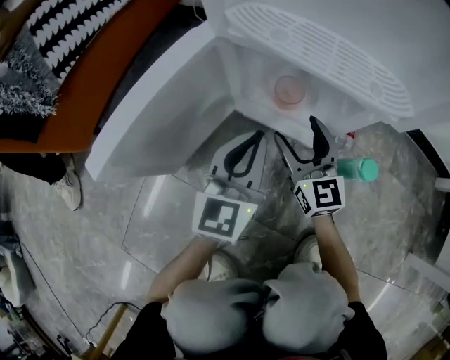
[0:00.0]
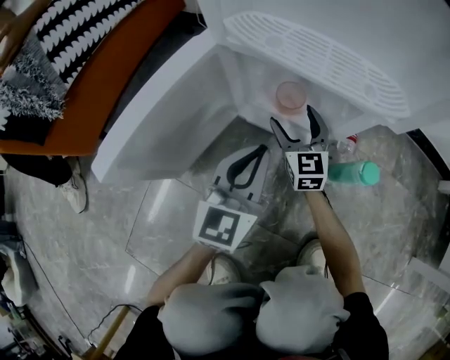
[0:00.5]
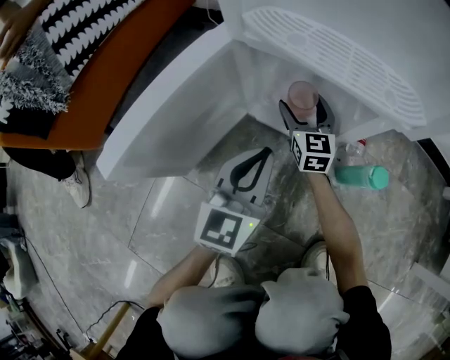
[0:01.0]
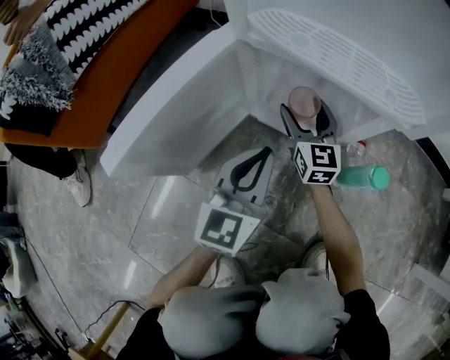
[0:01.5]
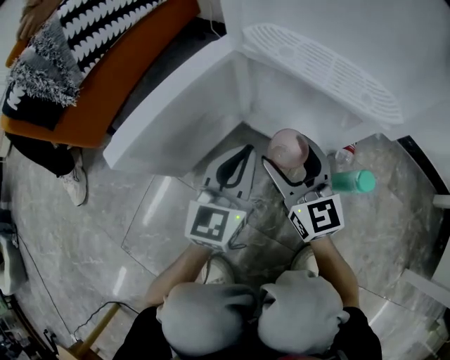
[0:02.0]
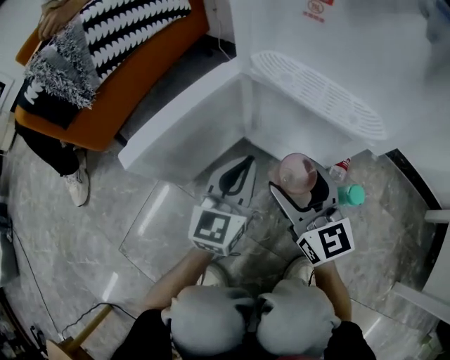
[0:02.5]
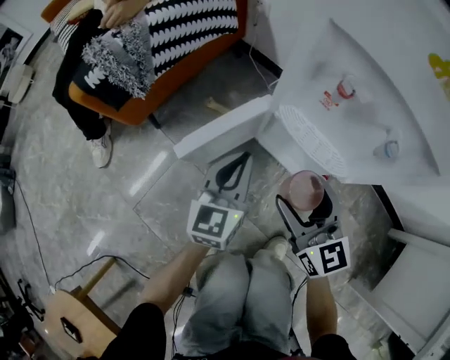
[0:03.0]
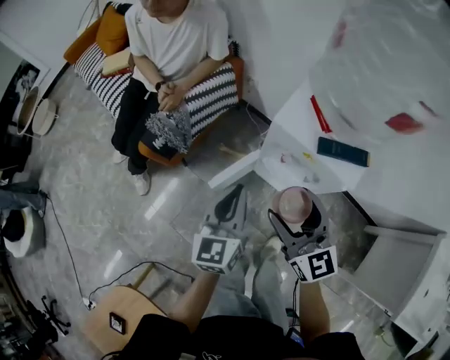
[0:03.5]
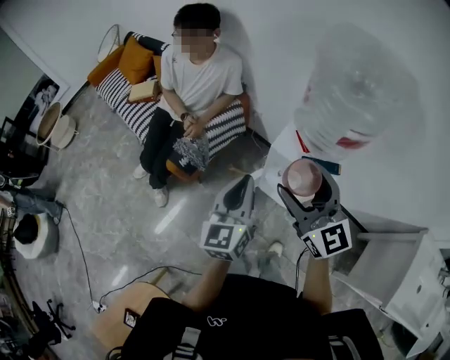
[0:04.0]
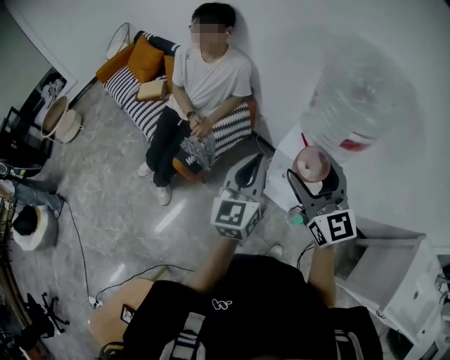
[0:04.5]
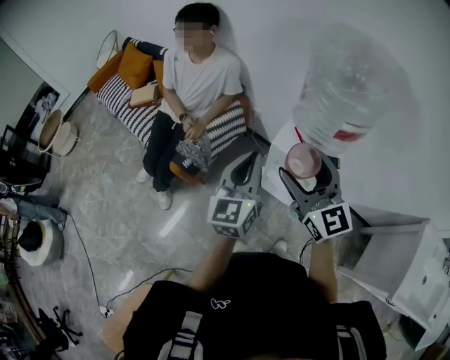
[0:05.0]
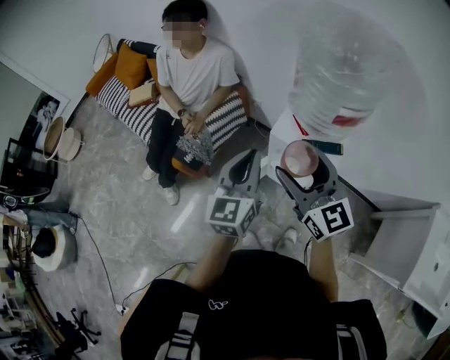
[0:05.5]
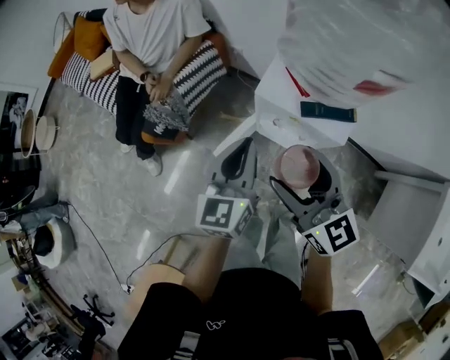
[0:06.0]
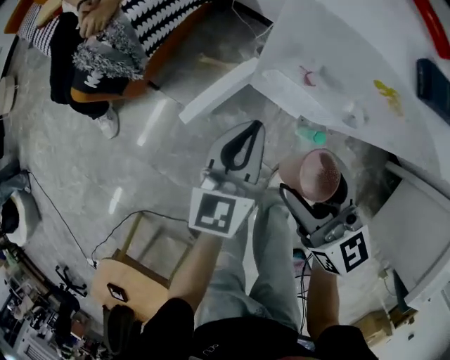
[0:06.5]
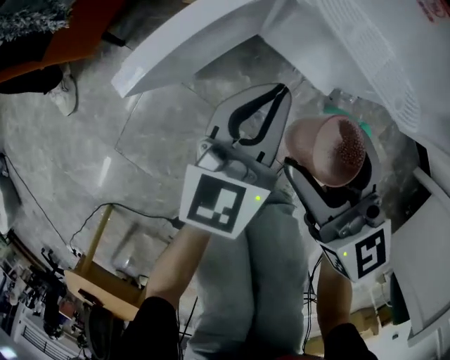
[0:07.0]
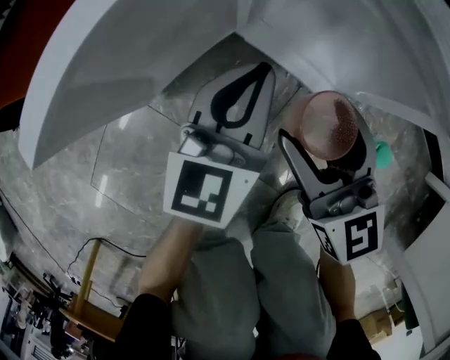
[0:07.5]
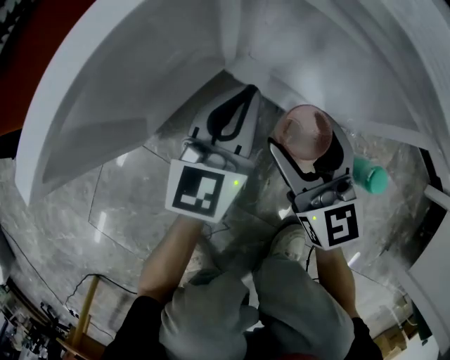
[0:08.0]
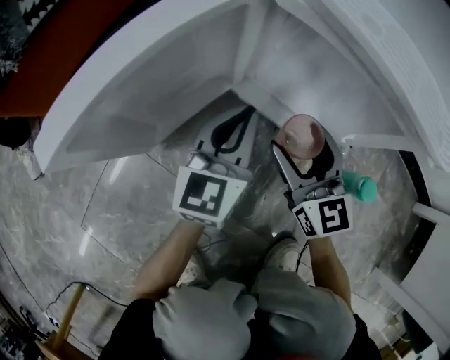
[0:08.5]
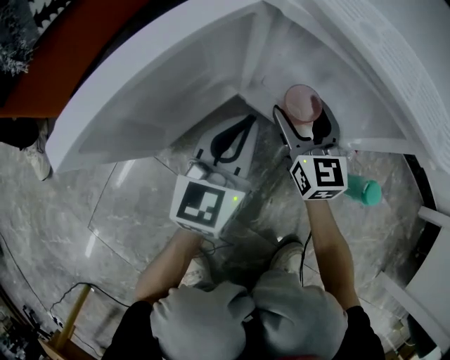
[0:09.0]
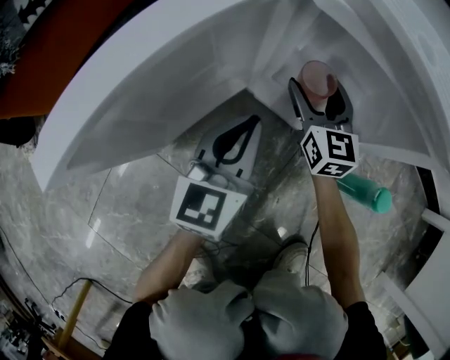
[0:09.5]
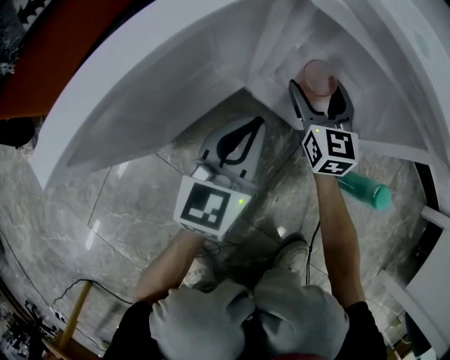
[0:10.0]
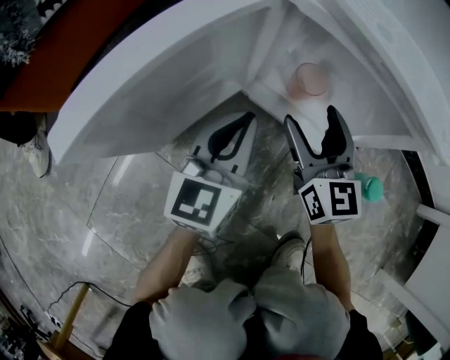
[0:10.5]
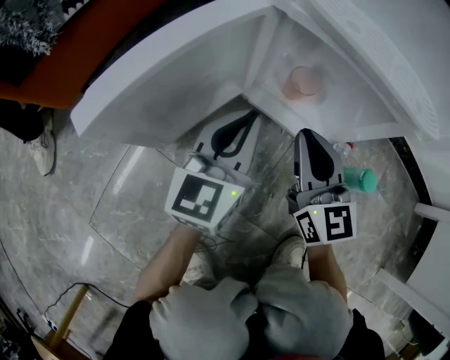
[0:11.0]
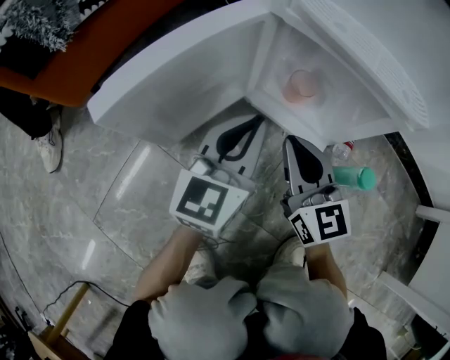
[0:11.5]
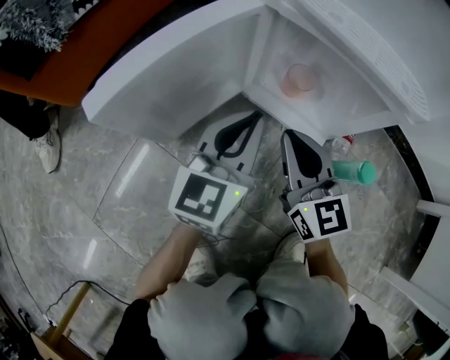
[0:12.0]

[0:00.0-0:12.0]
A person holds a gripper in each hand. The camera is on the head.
0:00.0 to 0:02.0: The right gripper moves approximately 10 cm forward and comes back.
0:02.0 to 0:04.0: The two grippers go approximately 80 cm upward.
0:04.0 to 0:06.0: The right gripper shifts about 15 cm downward; the left gripper goes approximately 15 cm downward, to the right and forward.
0:06.0 to 0:08.0: Both grippers travel together downward, some 70 cm.
0:08.0 to 0:10.0: The right gripper heads forward and downward, covering some 15 cm.
0:10.0 to 0:12.0: The left gripper is displaced upward by roughly 10 cm. The right gripper is displaced backward and upward by about 20 cm, and closes its fingers.

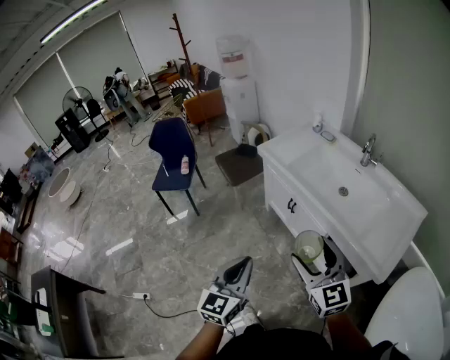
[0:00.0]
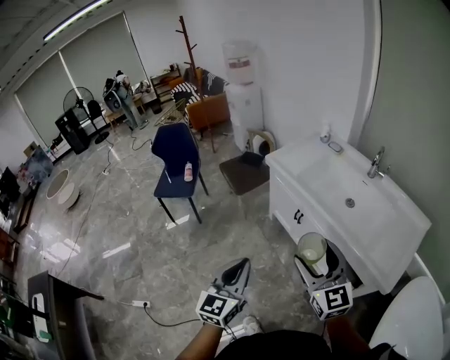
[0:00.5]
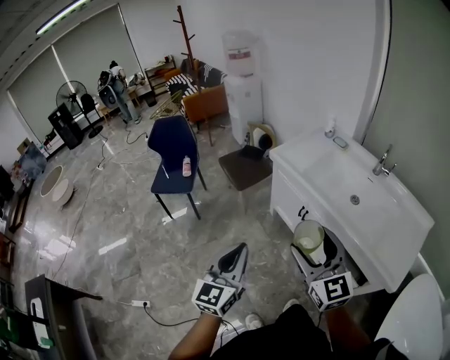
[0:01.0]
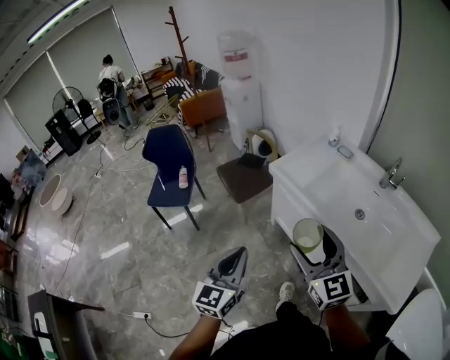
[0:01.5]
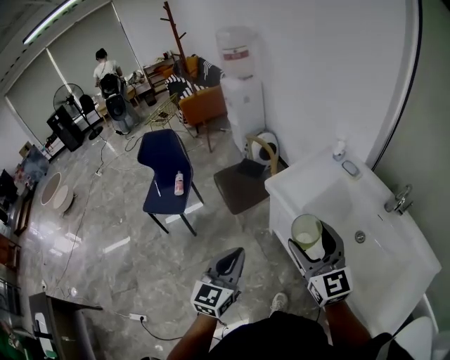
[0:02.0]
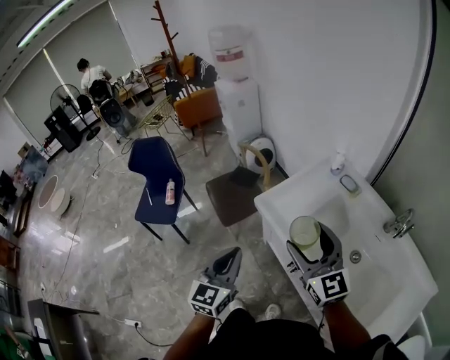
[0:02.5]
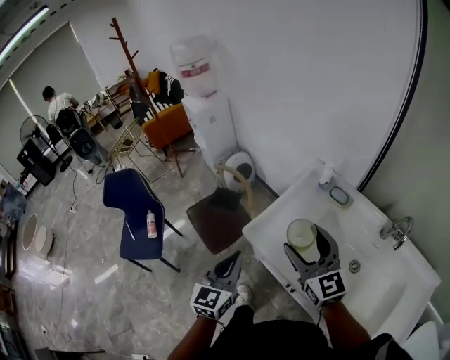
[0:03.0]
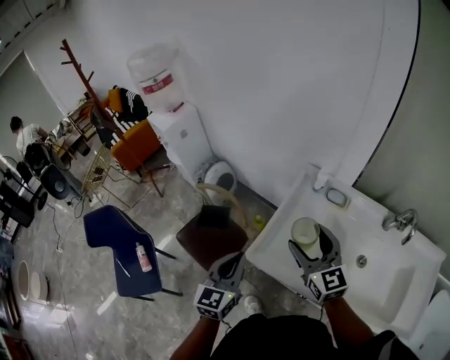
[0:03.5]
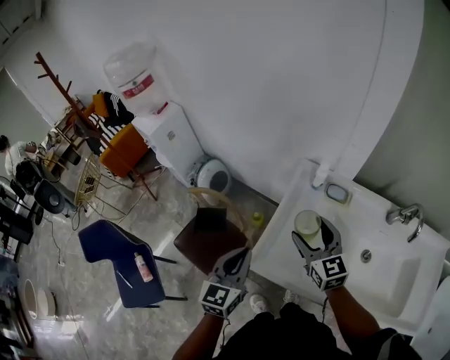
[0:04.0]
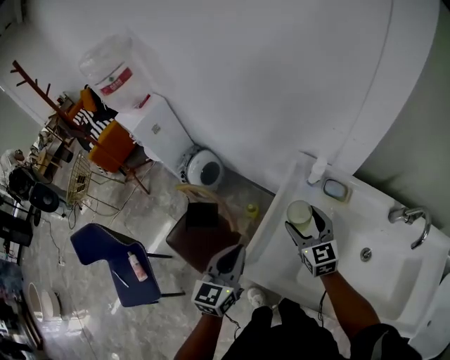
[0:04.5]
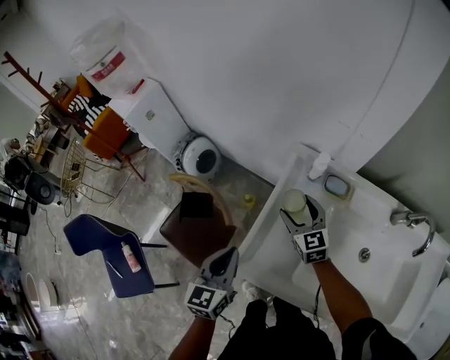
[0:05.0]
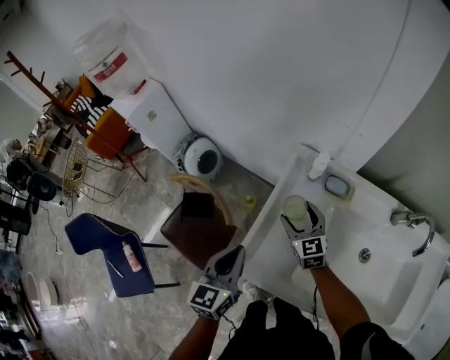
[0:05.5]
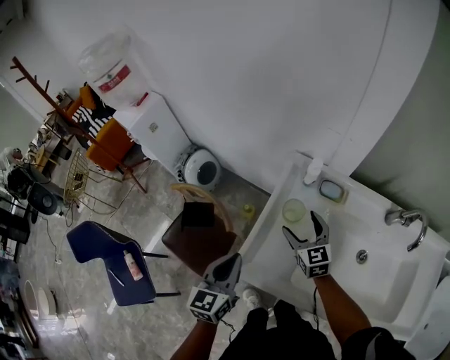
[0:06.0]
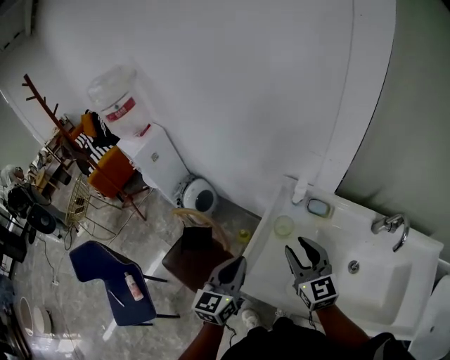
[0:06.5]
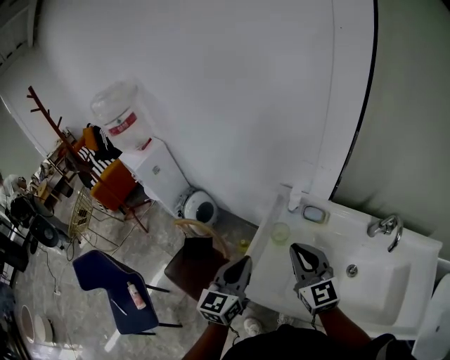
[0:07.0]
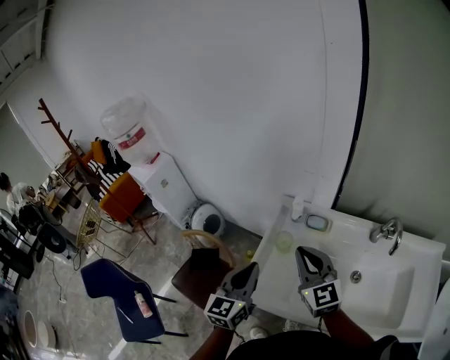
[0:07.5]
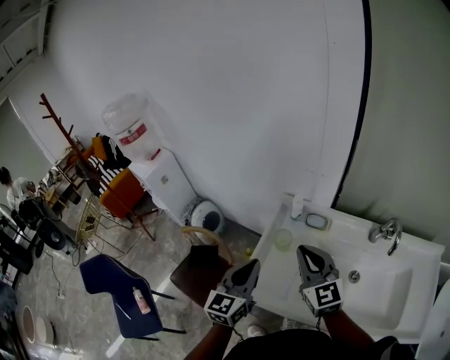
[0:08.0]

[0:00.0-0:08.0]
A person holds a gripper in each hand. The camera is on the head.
0:00.0 to 0:02.0: Both grippers travel together forward, some 35 cm.
0:02.0 to 0:04.0: The right gripper changes place by approximately 40 cm, and rotates about 30 degrees, while the left gripper moves about 40 cm, and turns by some 30 degrees.
0:04.0 to 0:06.0: The right gripper goes approximately 15 cm downward and forward; the left gripper goes some 5 cm downward.
0:06.0 to 0:08.0: The right gripper travels upward and backward by approximately 25 cm, and closes. Meanwhile the left gripper moves upward and to the right, roughly 15 cm.

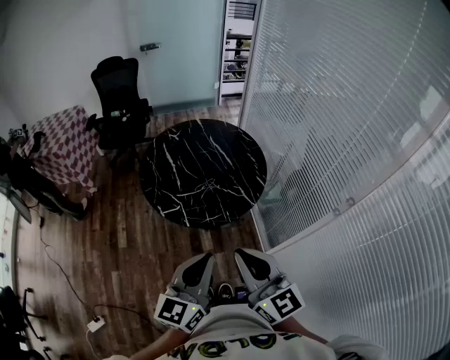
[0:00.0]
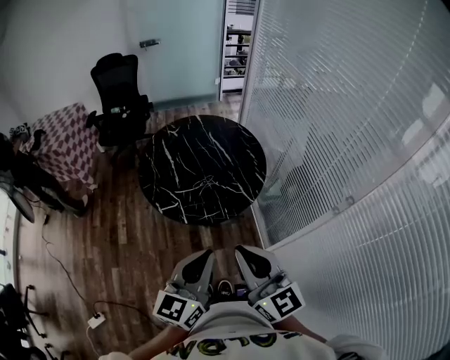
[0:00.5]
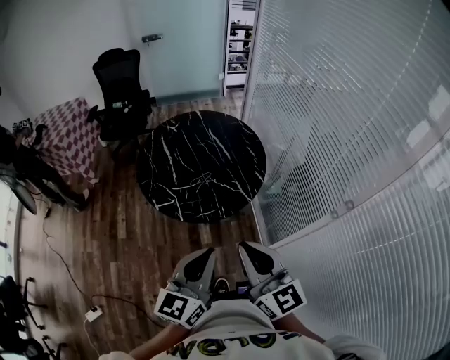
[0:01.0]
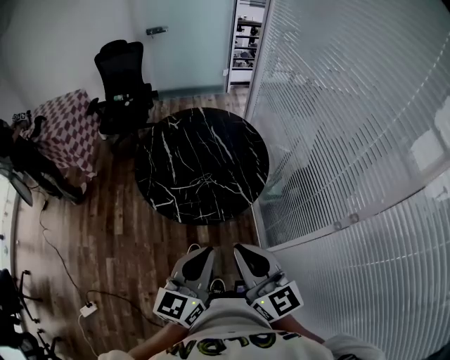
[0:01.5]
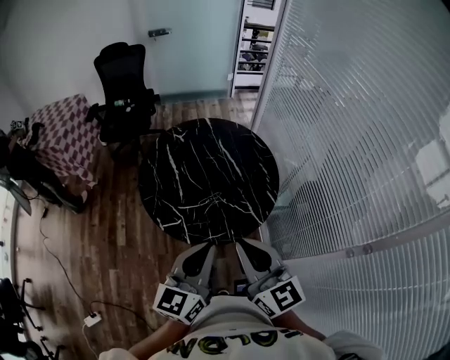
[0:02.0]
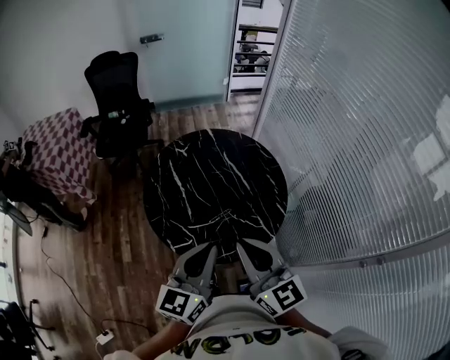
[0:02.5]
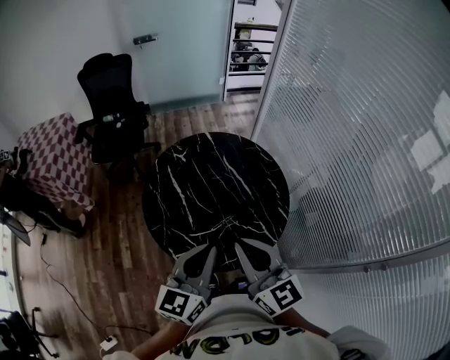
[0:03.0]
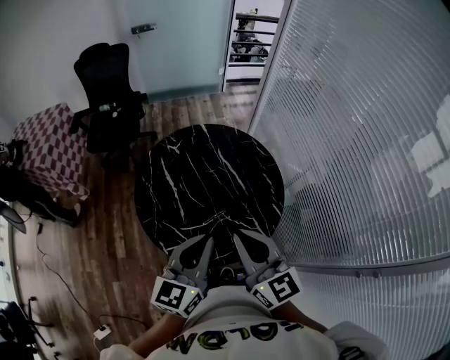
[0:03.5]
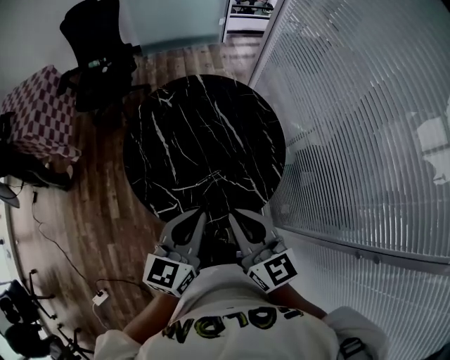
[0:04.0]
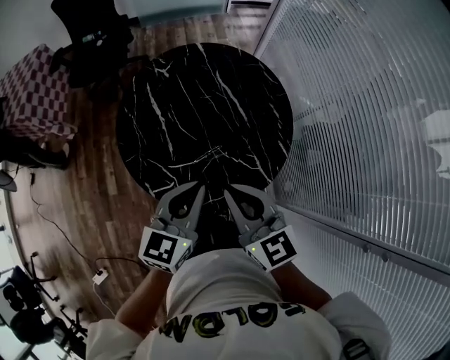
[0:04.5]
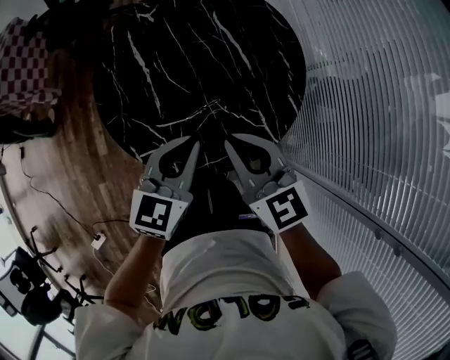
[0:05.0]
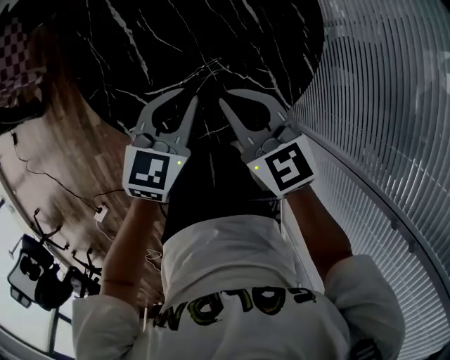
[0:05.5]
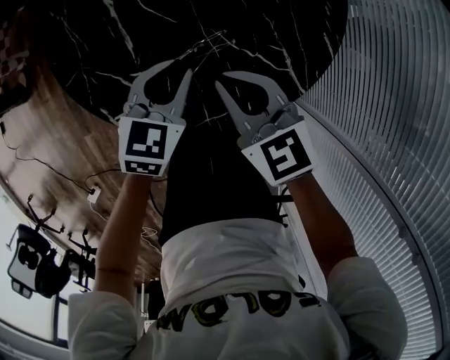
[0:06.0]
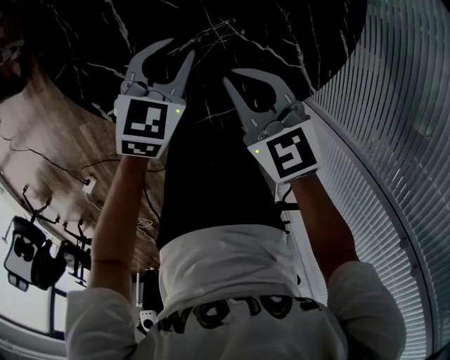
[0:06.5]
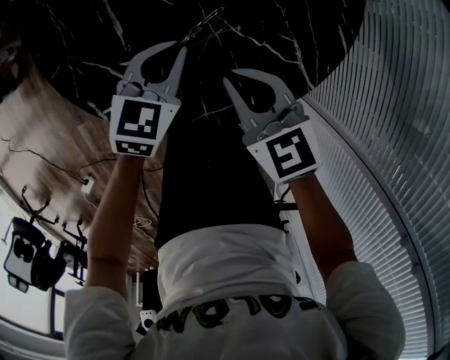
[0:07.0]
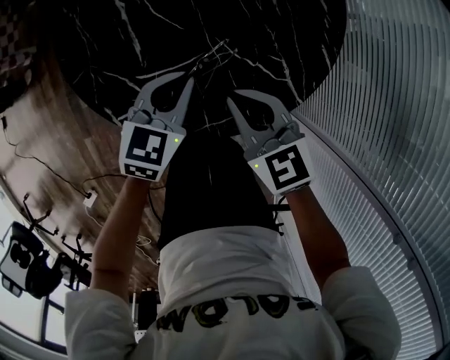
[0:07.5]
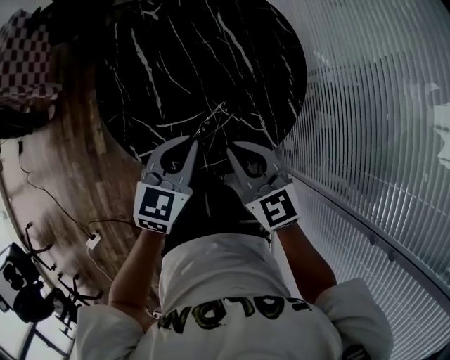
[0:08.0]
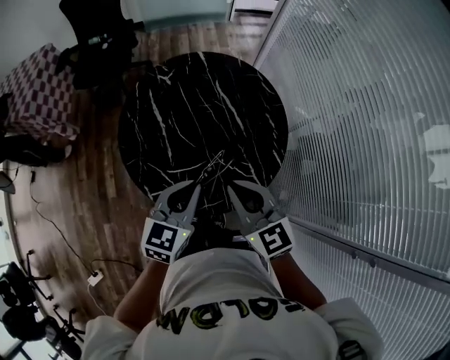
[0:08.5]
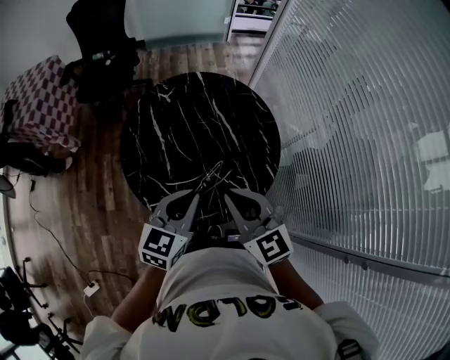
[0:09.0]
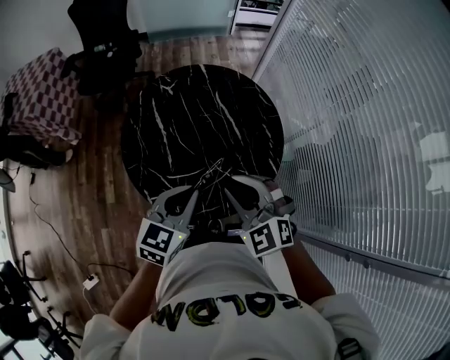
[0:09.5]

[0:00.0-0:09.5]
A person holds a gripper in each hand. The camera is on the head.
0:00.0 to 0:02.0: Both grippers travel together forward, about 15 cm.
0:02.0 to 0:04.0: Both grippers move forward and downward, approximately 15 cm.
0:04.0 to 0:05.5: The grippers both shift downward by some 20 cm. The right gripper changes its angle by roughly 20 degrees. Meanwhile the left gripper changes its angle by some 20 degrees.
0:05.5 to 0:07.5: Both grippers travel together downward, roughly 10 cm.
0:07.5 to 0:09.5: Both grippers travel together upward, some 25 cm. The right gripper rotates some 40 degrees.
